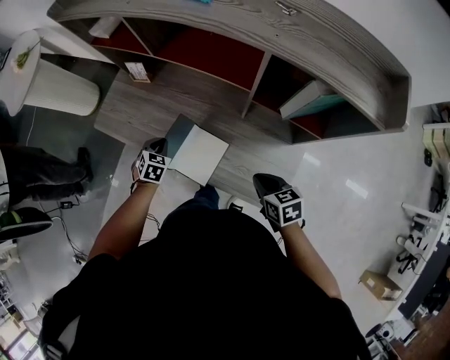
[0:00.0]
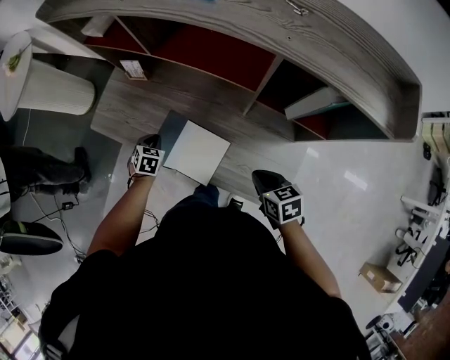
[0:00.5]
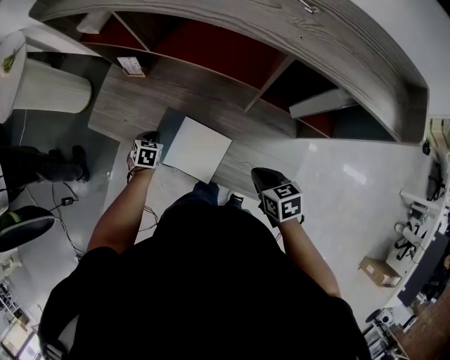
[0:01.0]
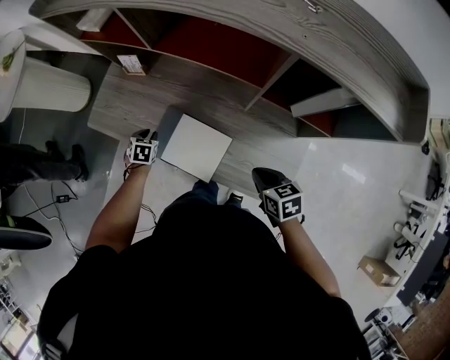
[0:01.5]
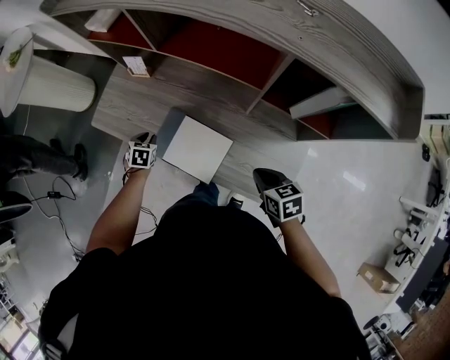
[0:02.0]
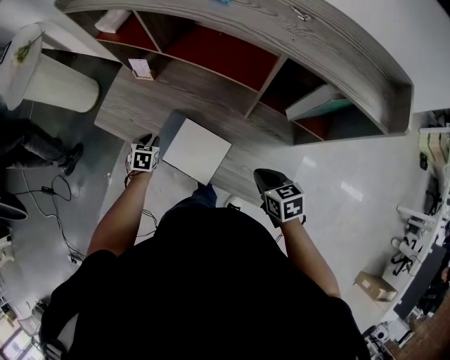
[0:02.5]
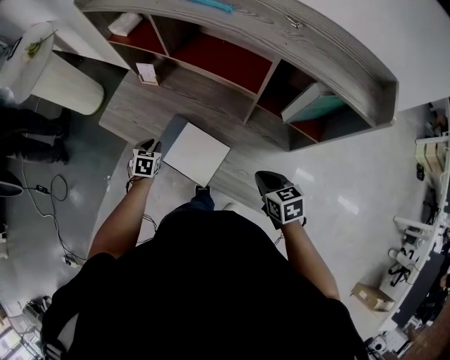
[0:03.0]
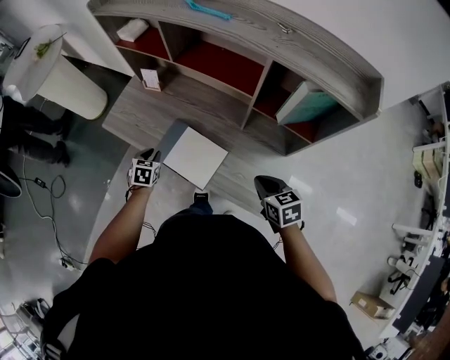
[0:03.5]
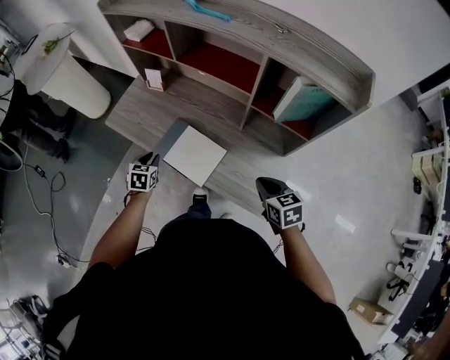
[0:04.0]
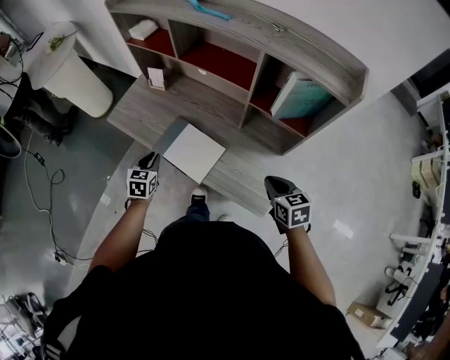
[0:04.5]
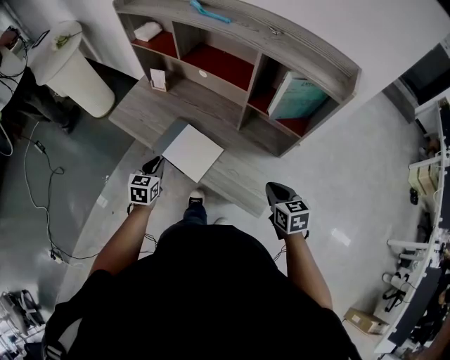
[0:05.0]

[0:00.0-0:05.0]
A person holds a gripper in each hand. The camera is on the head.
0:00.0 to 0:02.5: The left gripper travels to the left by approximately 5 cm.
0:02.5 to 0:05.0: The right gripper shifts approximately 15 cm backward, to the right and upward, while the left gripper goes some 20 cm backward and upward, and turns by roughly 20 degrees.

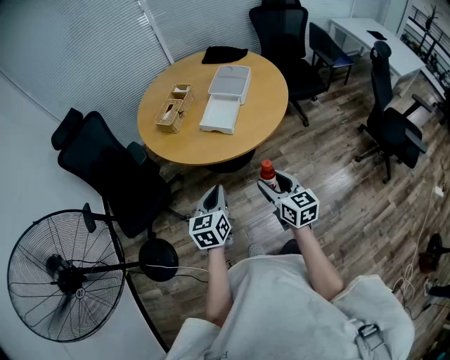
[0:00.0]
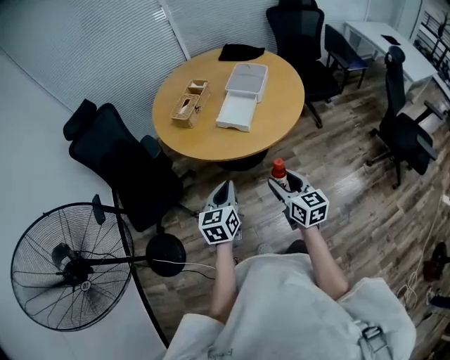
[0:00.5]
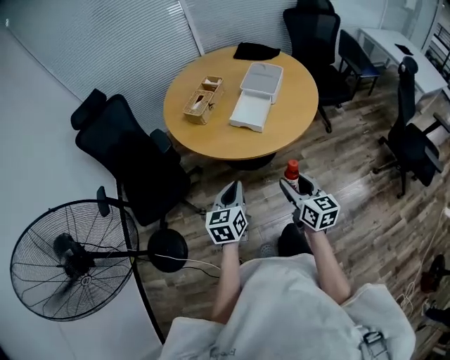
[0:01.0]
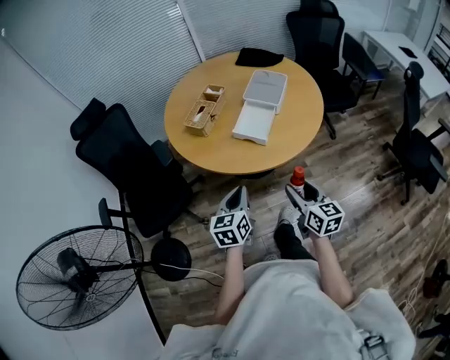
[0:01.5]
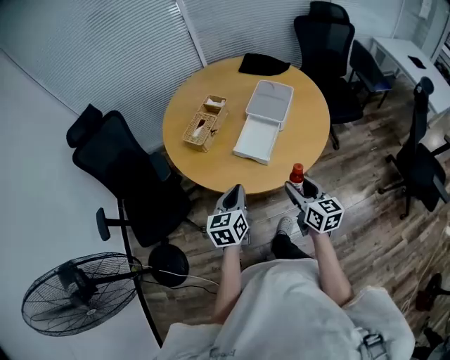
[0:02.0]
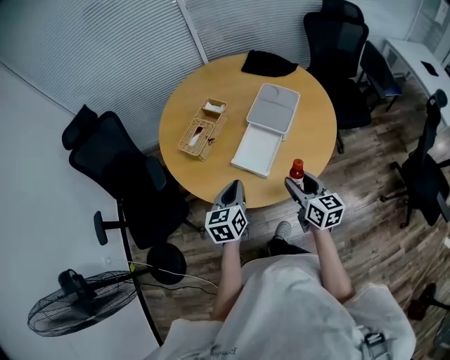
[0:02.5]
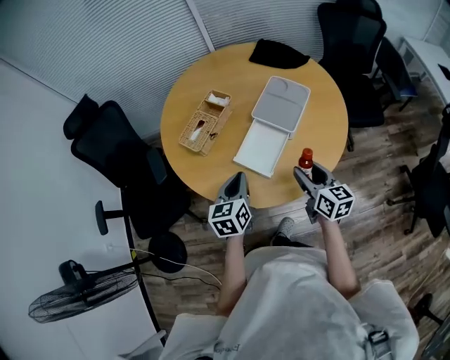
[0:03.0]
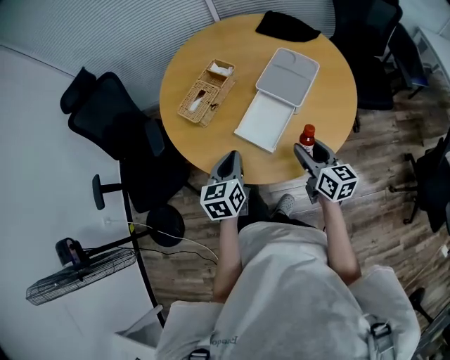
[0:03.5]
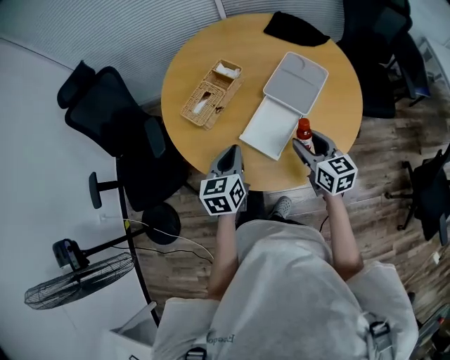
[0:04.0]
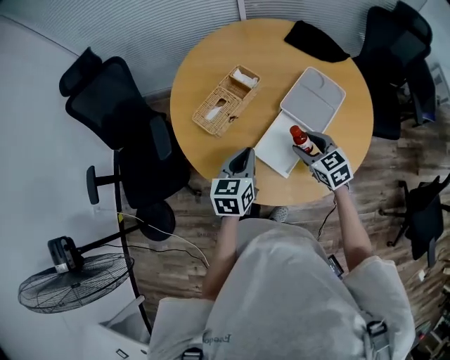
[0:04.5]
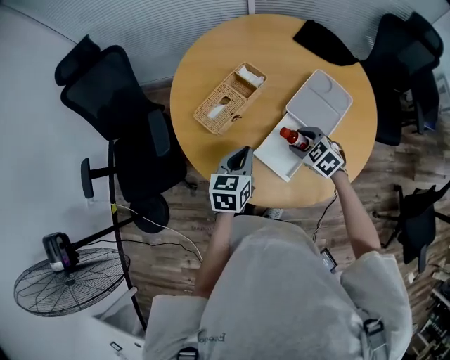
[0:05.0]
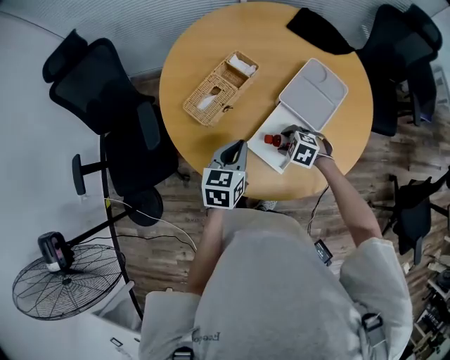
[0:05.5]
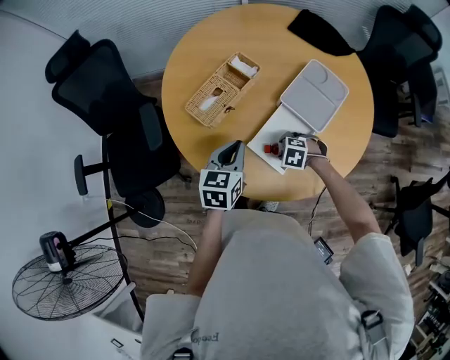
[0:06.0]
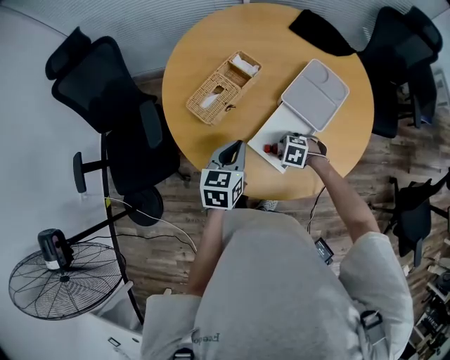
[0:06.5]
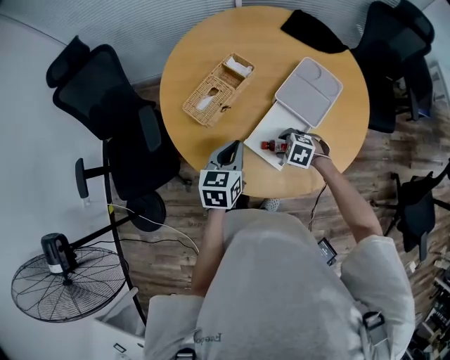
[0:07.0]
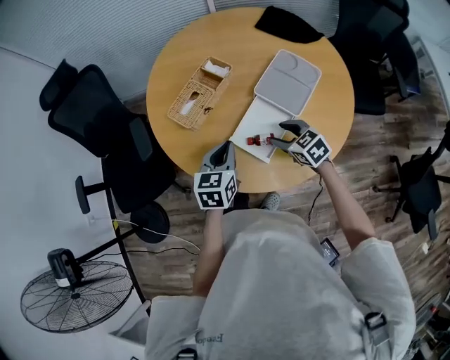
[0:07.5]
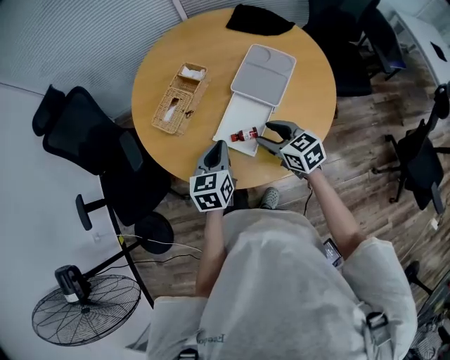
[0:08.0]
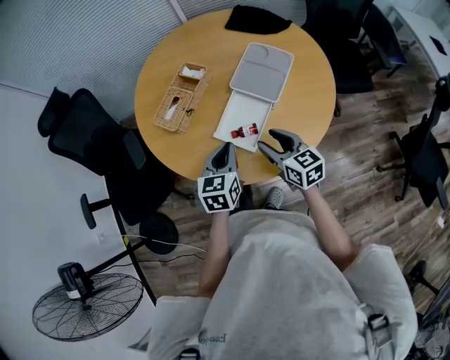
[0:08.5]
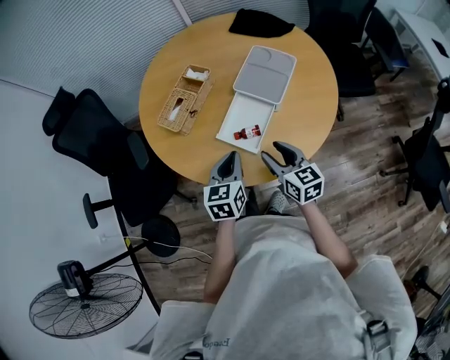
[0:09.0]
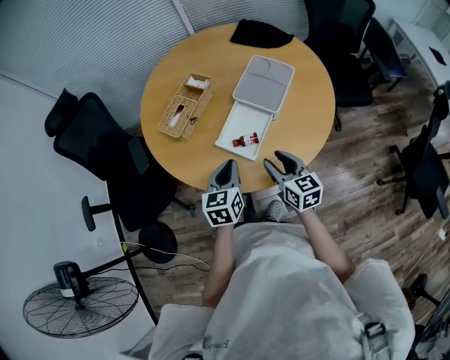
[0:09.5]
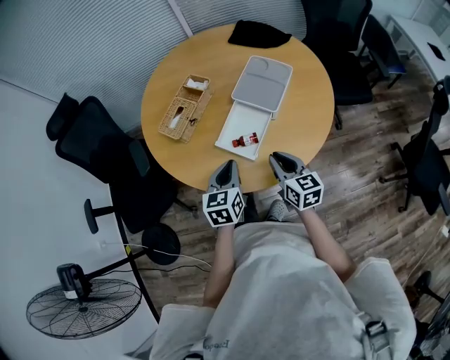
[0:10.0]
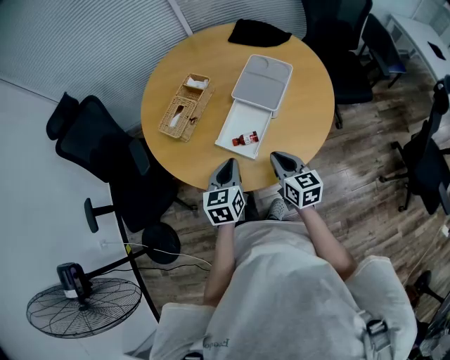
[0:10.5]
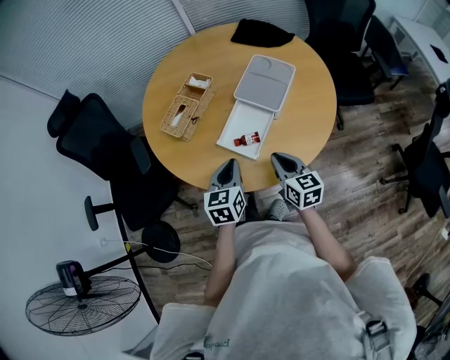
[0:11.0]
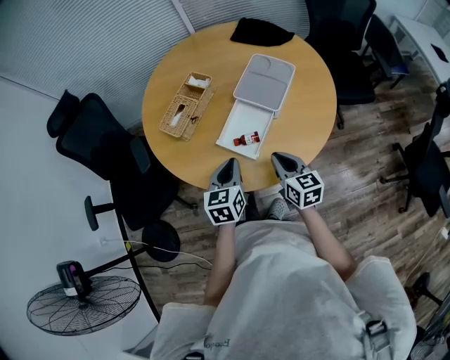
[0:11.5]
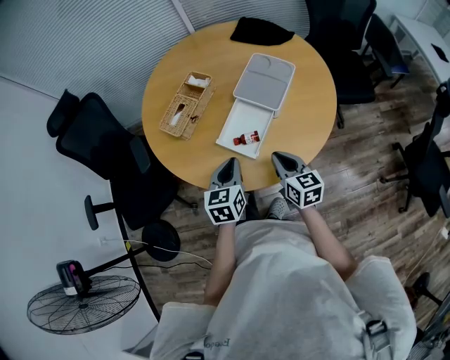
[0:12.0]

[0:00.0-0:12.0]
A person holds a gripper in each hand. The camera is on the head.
0:00.0 to 0:02.0: The two grippers go some 15 cm forward.
0:02.0 to 0:04.0: The grippers both shift forward by about 20 cm.
0:04.0 to 0:06.0: The right gripper travels downward by some 20 cm, and tilts its fingers roughly 60 degrees downward; the left gripper shifts by about 10 cm.
0:06.0 to 0:08.0: The right gripper heads upward, covering about 20 cm, and tilts its fingers about 50 degrees upward; the left gripper ends up roughly 10 cm from where it was.
0:08.0 to 0:10.0: Both grippers travel together backward, roughly 5 cm. The right gripper changes its angle by roughly 20 degrees, and closes.
0:10.0 to 0:12.0: Neither gripper changes place.

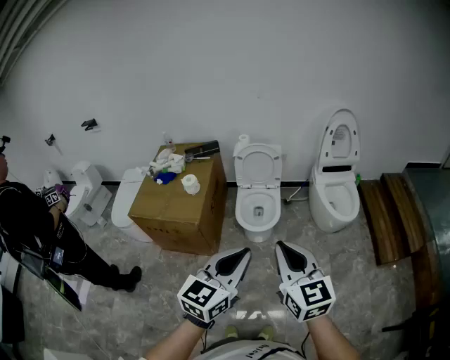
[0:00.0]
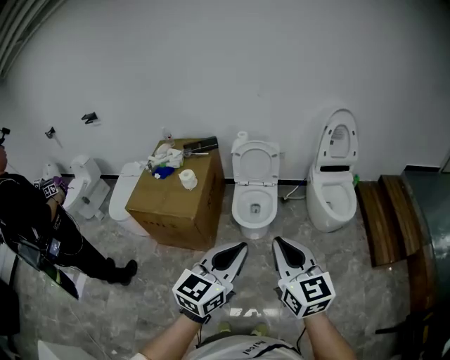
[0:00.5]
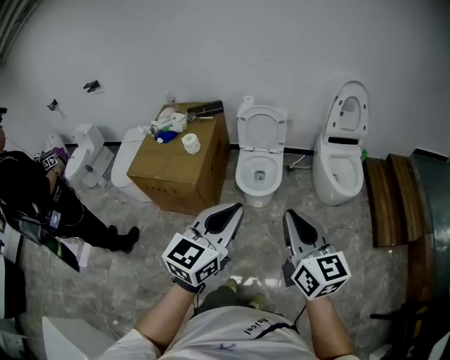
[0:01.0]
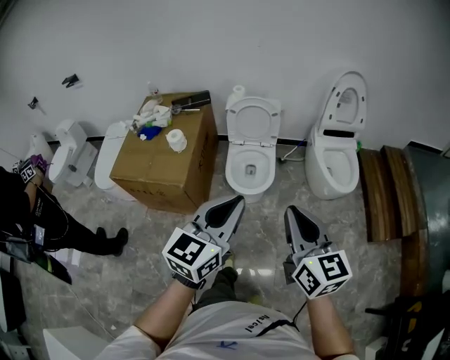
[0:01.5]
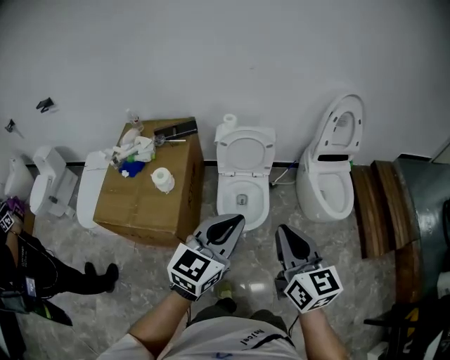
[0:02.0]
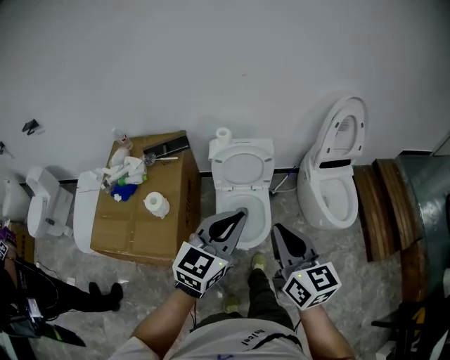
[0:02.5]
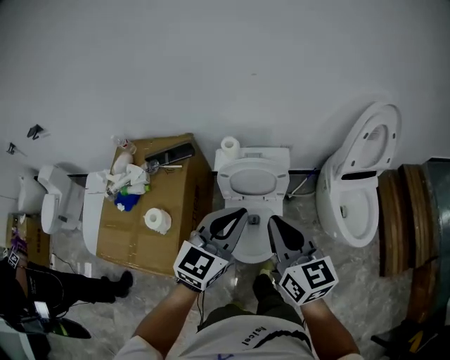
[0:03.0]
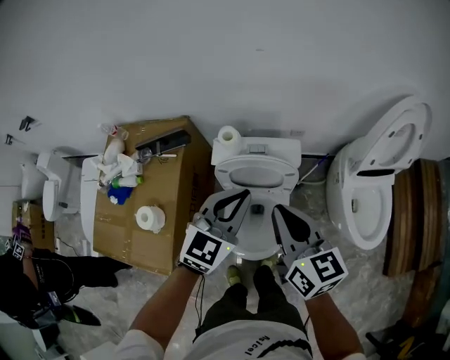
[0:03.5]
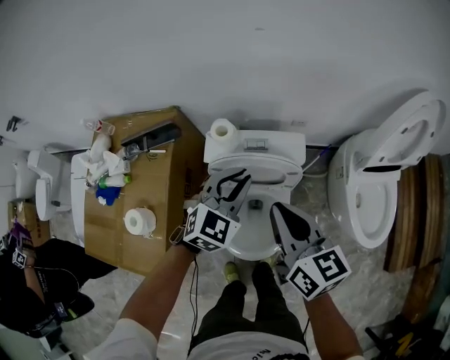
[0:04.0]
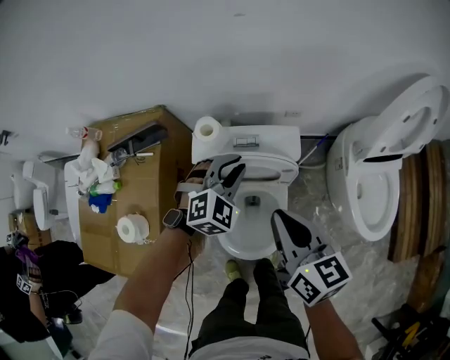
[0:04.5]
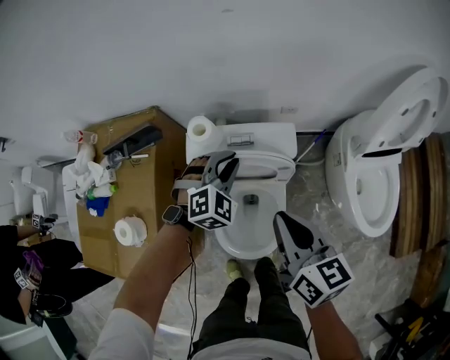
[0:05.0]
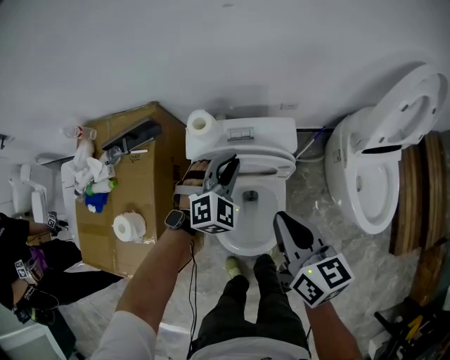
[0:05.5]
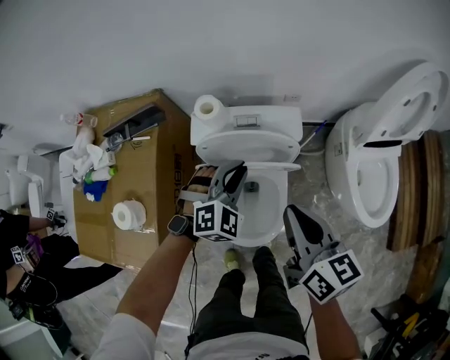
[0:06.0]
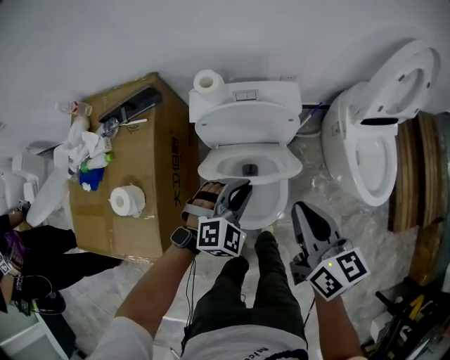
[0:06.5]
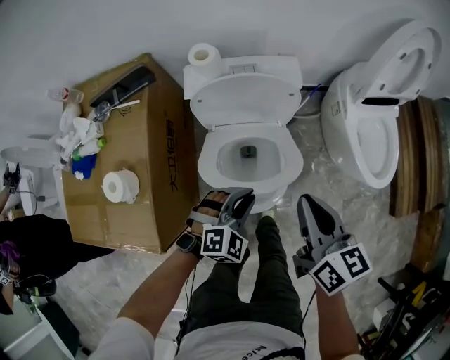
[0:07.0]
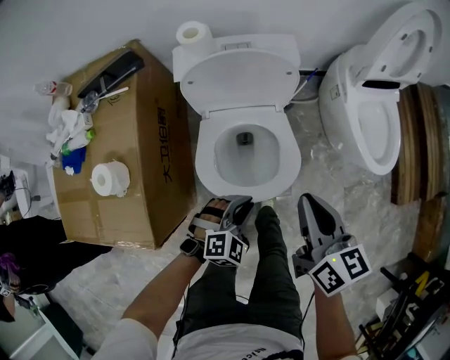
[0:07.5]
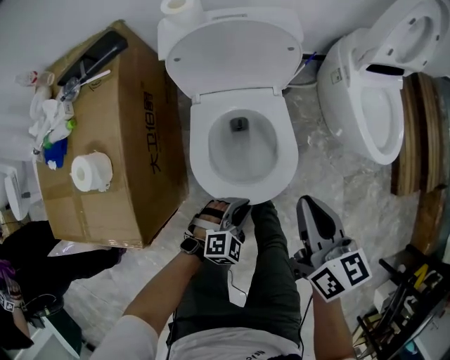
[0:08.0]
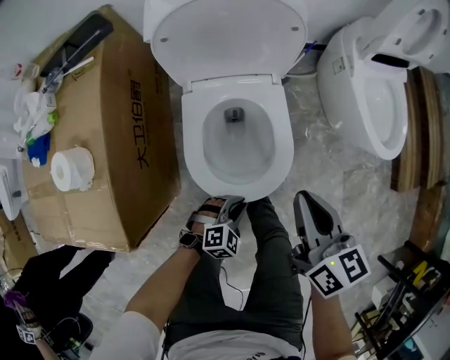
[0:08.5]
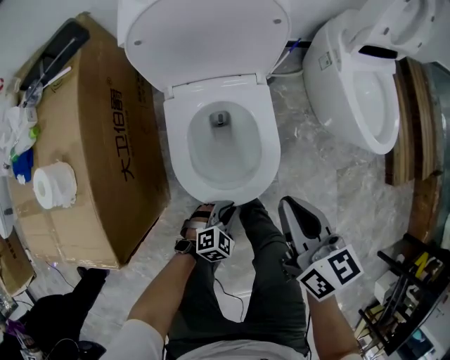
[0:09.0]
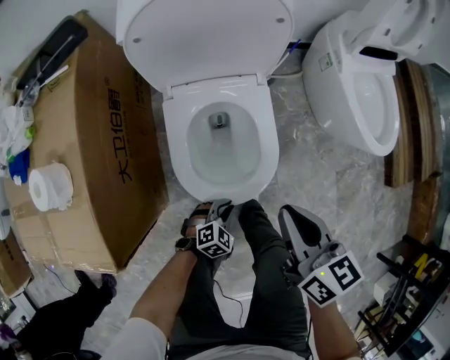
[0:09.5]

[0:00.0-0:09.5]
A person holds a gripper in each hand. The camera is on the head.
0:00.0 to 0:02.0: Both grippers move forward, about 25 cm.
0:02.0 to 0:04.0: Both grippers are carried forward, about 50 cm. The left gripper heads downward, covering approximately 25 cm, and changes its angle by some 30 degrees.
0:04.0 to 0:05.5: The left gripper goes some 10 cm downward, and swivels some 30 degrees. Meanwhile the right gripper moves downward, about 5 cm.
0:05.5 to 0:07.5: The right gripper is displaced backward and downward by about 20 cm. The left gripper travels backward and downward by some 35 cm, and swivels about 20 degrees.
0:07.5 to 0:09.5: The right gripper travels downward by roughly 15 cm. Meanwhile the left gripper is displaced downward by approximately 25 cm.
